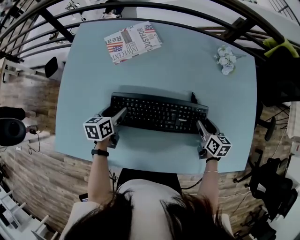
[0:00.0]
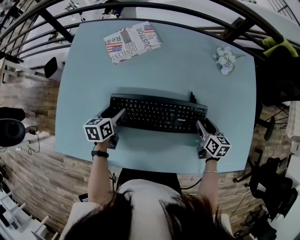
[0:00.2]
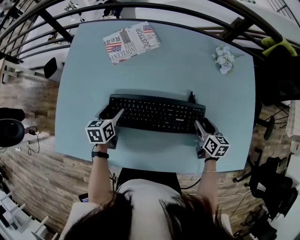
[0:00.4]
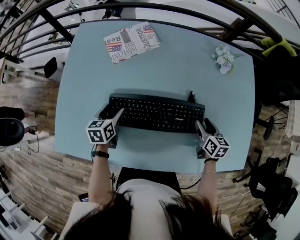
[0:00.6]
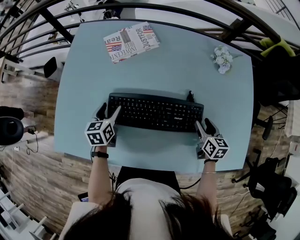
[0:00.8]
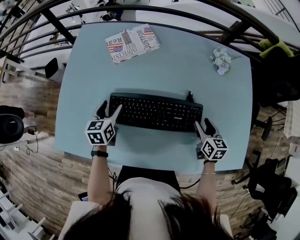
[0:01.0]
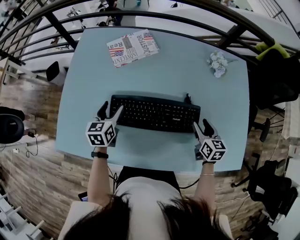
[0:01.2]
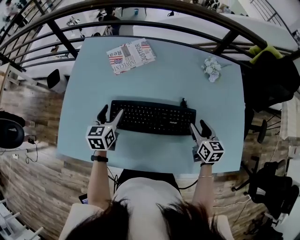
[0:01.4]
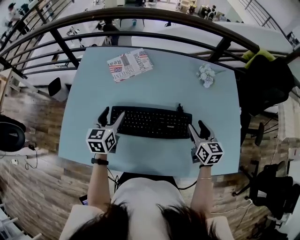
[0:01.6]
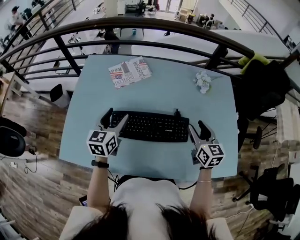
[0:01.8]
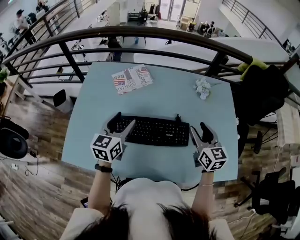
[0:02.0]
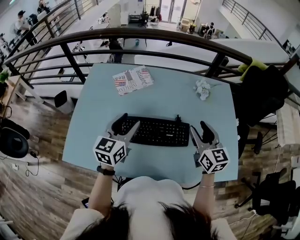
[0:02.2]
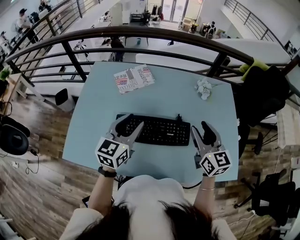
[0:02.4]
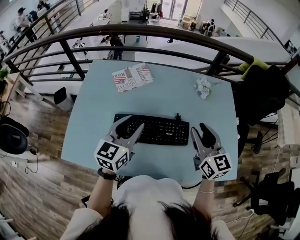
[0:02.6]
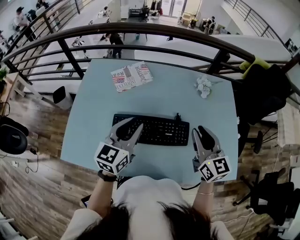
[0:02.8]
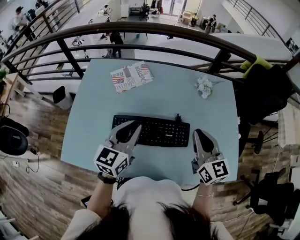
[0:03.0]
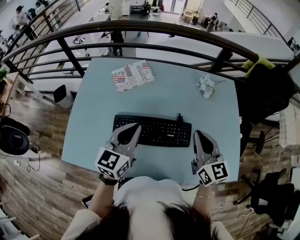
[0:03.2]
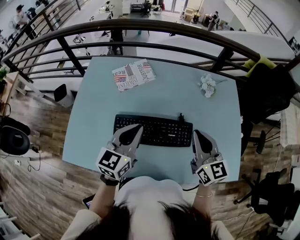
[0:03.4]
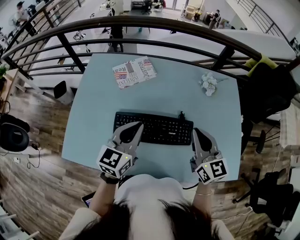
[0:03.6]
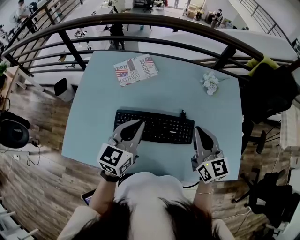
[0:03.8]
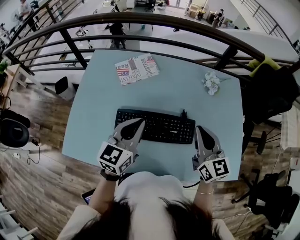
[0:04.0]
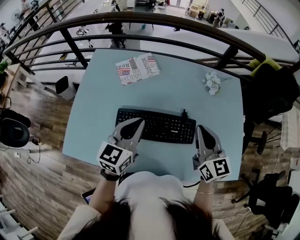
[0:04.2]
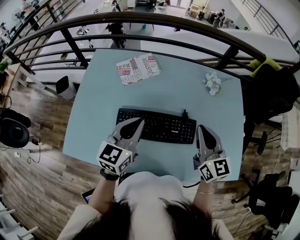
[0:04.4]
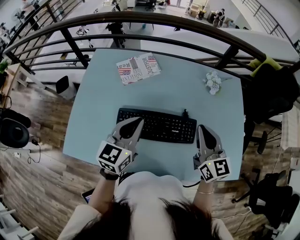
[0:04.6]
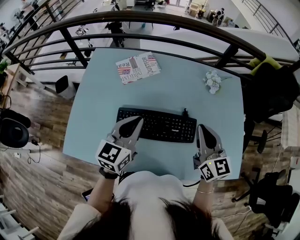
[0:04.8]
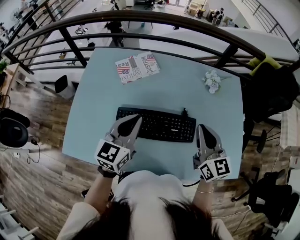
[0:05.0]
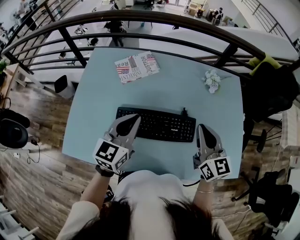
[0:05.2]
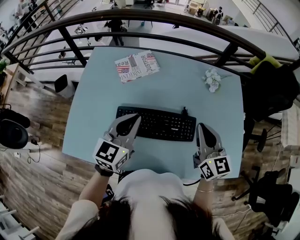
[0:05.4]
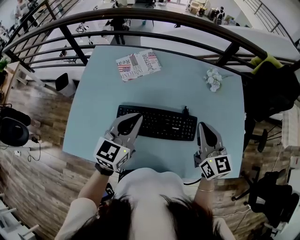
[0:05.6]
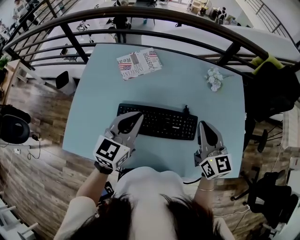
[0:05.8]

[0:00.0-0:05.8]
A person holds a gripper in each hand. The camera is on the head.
0:00.0 to 0:01.4: Both grippers travel together upward, about 10 cm. The left gripper rotates some 20 degrees.
0:01.4 to 0:02.8: The right gripper travels upward by roughly 20 cm, turns by some 30 degrees, and closes its fingers. Meanwhile the left gripper moves upward and to the right, approximately 20 cm, swivels approximately 30 degrees, and closes its fingers.
0:02.8 to 0:04.4: The right gripper closes its fingers.
0:04.4 to 0:05.8: There are only small adjustments of the grippers.

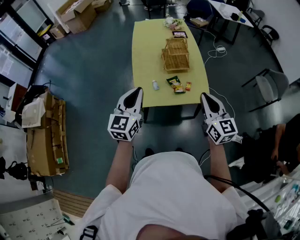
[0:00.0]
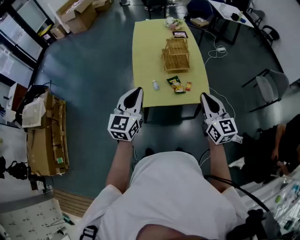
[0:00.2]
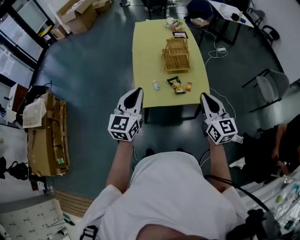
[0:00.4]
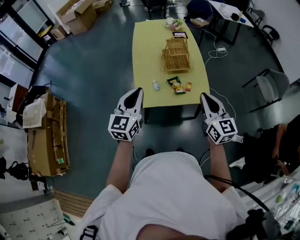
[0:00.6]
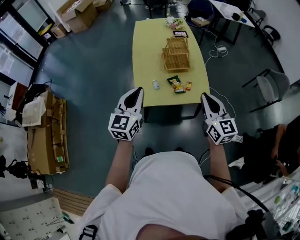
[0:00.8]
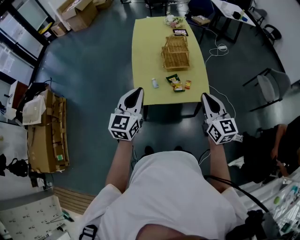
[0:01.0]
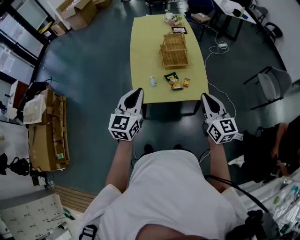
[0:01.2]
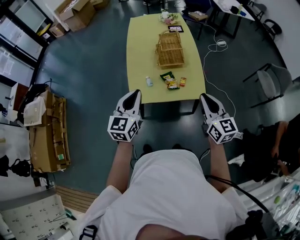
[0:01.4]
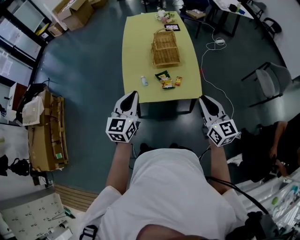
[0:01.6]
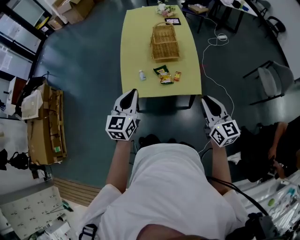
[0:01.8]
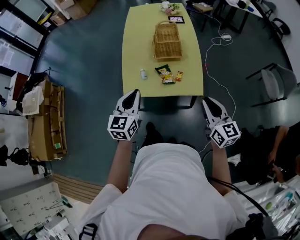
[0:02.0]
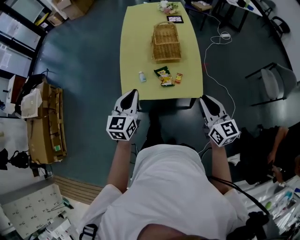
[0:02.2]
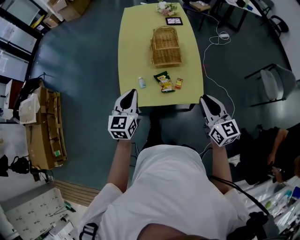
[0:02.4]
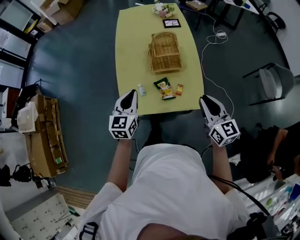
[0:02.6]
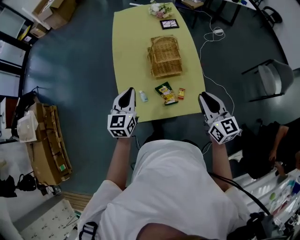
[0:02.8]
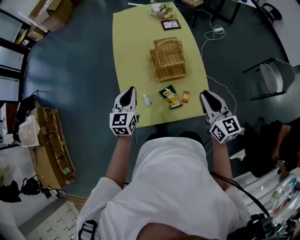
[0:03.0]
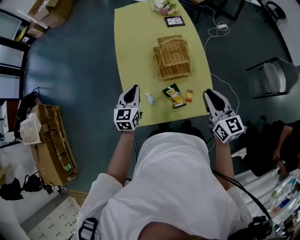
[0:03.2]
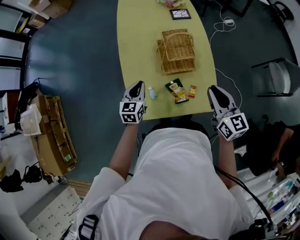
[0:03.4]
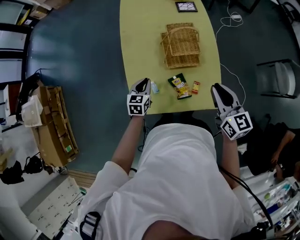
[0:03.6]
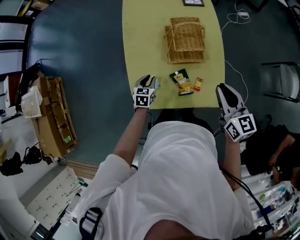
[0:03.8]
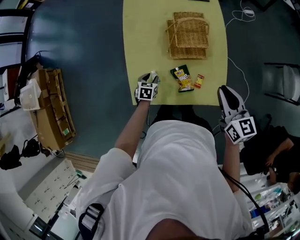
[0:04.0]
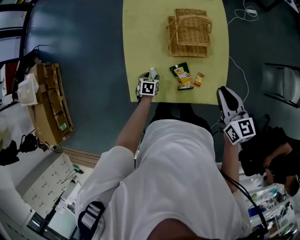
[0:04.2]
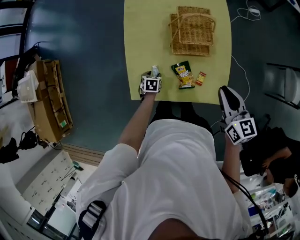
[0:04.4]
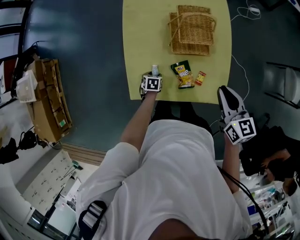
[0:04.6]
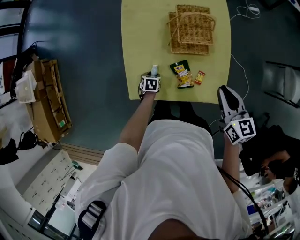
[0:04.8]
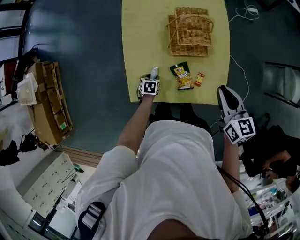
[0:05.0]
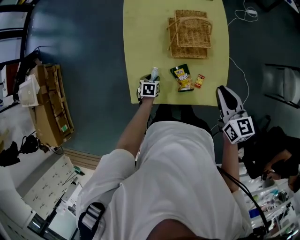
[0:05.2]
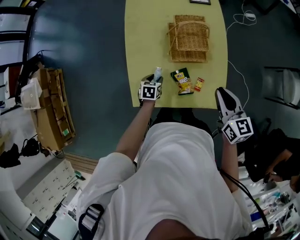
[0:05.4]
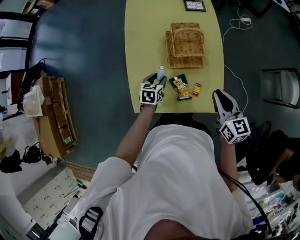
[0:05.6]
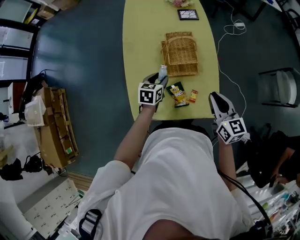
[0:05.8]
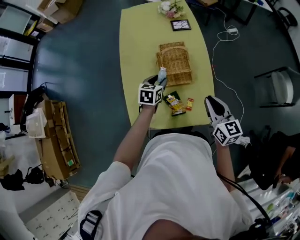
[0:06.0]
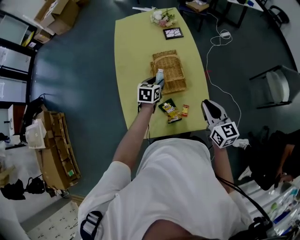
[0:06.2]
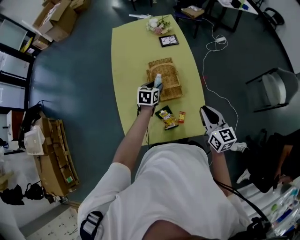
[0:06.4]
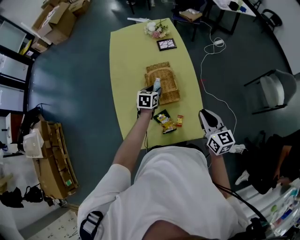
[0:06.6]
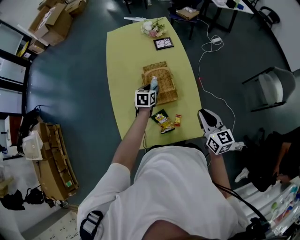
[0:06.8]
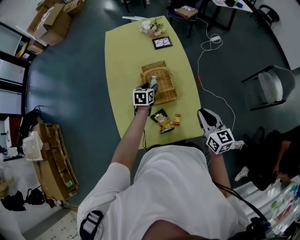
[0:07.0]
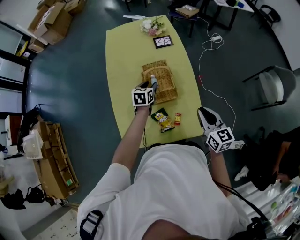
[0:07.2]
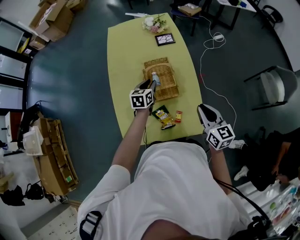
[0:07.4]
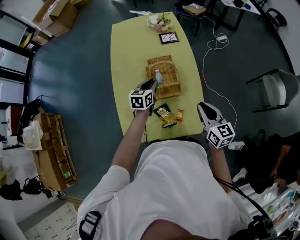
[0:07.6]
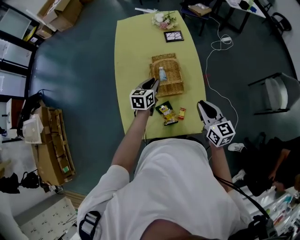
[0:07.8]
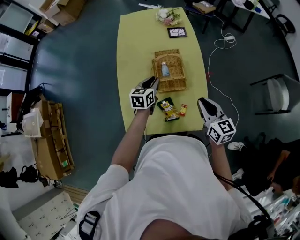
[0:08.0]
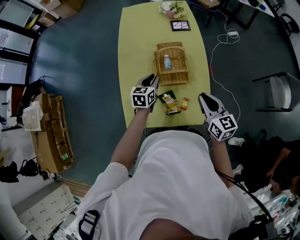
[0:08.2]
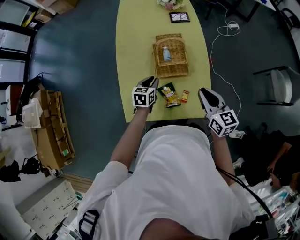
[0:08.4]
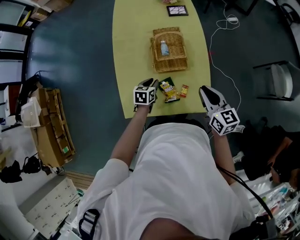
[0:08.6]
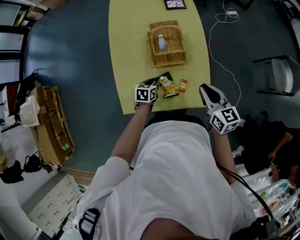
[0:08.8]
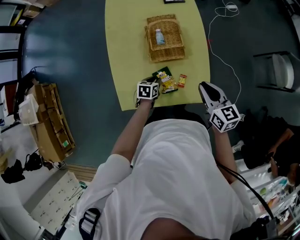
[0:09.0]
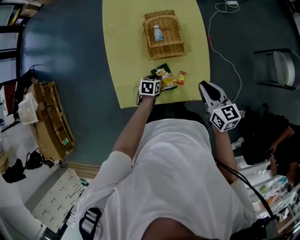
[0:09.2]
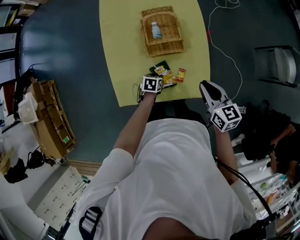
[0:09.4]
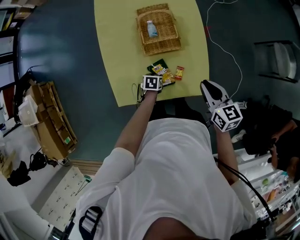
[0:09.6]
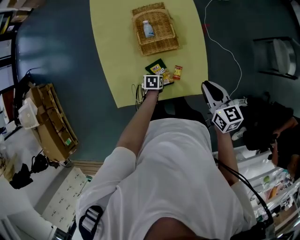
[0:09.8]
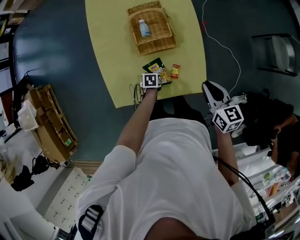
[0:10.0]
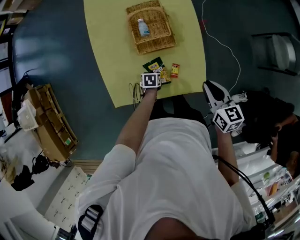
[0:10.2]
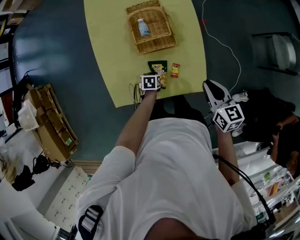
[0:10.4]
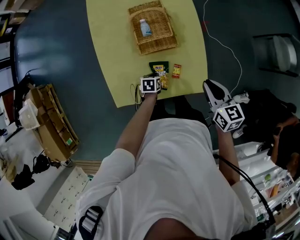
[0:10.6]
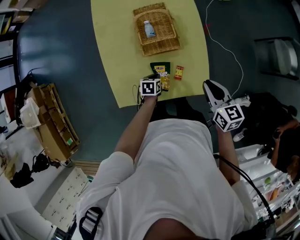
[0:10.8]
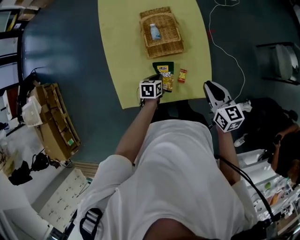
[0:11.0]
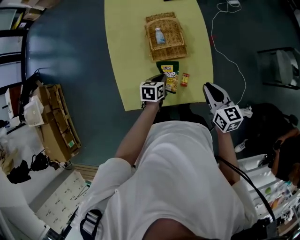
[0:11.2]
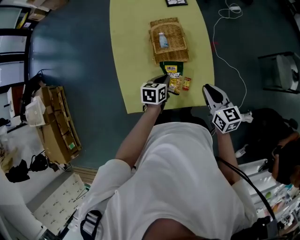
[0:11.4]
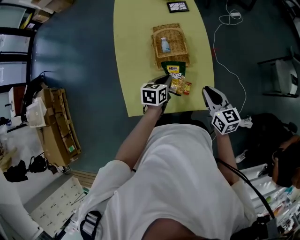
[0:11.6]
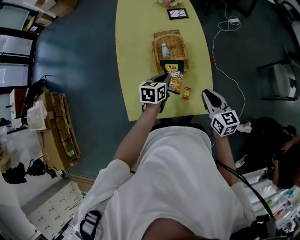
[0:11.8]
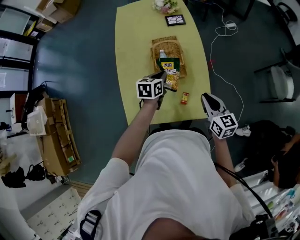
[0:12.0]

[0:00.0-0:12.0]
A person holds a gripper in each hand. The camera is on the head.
0:00.0 to 0:01.6: The two grippers go roughly 10 cm to the right.
0:01.6 to 0:03.0: The grippers both shift forward by about 30 cm.
0:03.0 to 0:04.4: The left gripper is displaced downward by some 40 cm, tilts its fingers some 50 degrees downward, and opens its fingers; the right gripper goes some 10 cm downward.
0:04.4 to 0:06.0: The left gripper is displaced upward and forward by about 30 cm, and changes its angle by roughly 30 degrees.
0:06.0 to 0:07.6: The left gripper moves forward, about 5 cm, and closes up.
0:07.6 to 0:09.0: The right gripper shifts approximately 5 cm downward. The left gripper is displaced downward and backward by some 25 cm, and swivels roughly 30 degrees.
0:09.0 to 0:10.4: The right gripper moves to the right and downward, some 10 cm. Meanwhile the left gripper is displaced downward by about 10 cm.
0:10.4 to 0:12.0: The left gripper shifts some 30 cm upward and forward, and tips its fingers upward by some 30 degrees. The right gripper shifts about 5 cm upward.

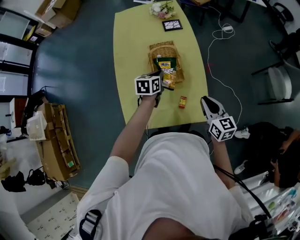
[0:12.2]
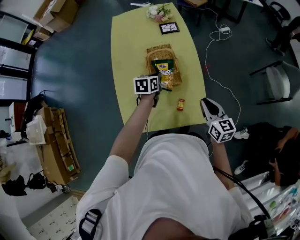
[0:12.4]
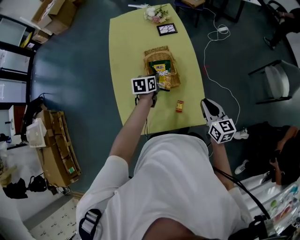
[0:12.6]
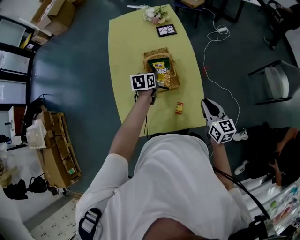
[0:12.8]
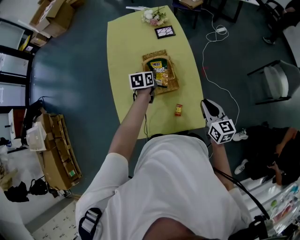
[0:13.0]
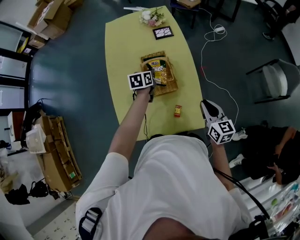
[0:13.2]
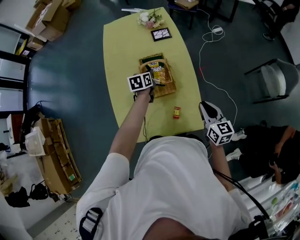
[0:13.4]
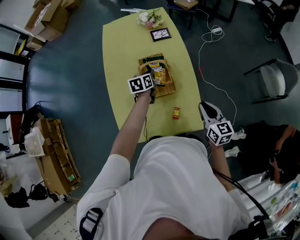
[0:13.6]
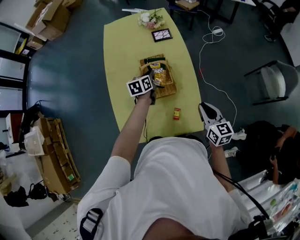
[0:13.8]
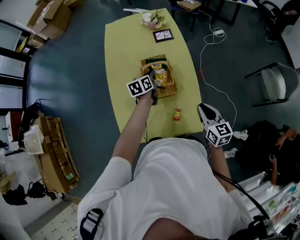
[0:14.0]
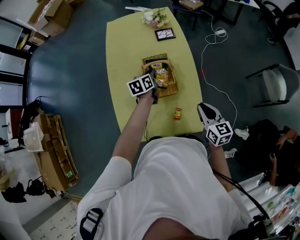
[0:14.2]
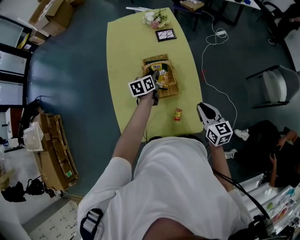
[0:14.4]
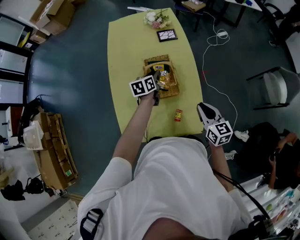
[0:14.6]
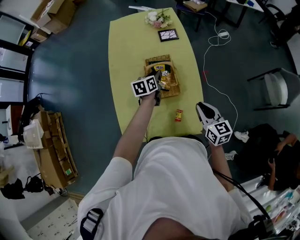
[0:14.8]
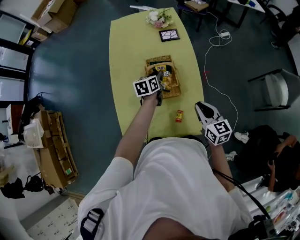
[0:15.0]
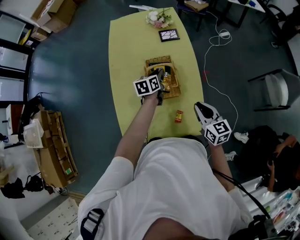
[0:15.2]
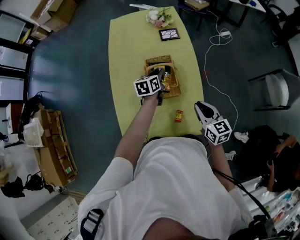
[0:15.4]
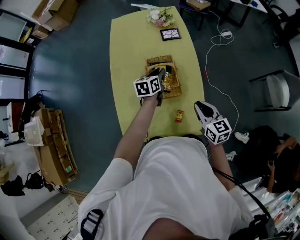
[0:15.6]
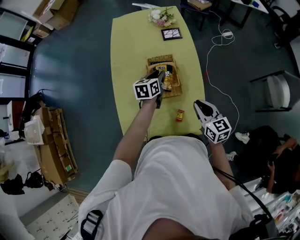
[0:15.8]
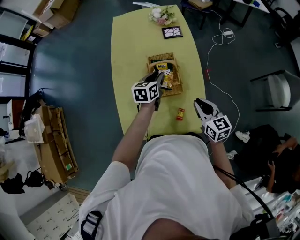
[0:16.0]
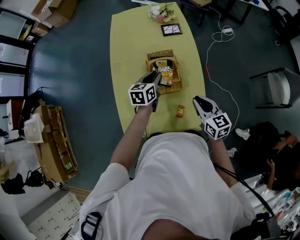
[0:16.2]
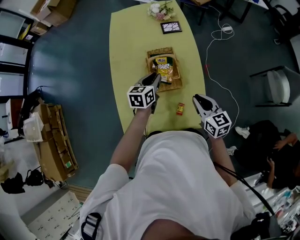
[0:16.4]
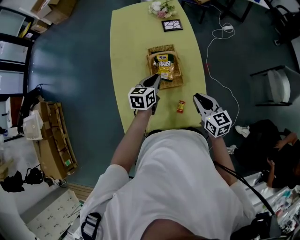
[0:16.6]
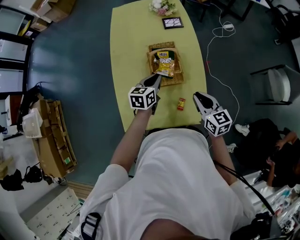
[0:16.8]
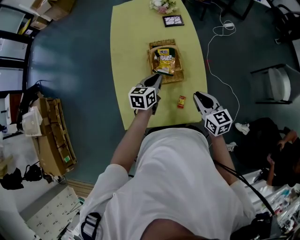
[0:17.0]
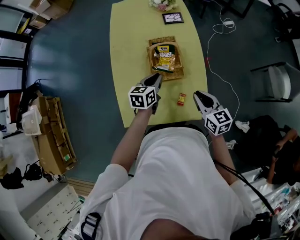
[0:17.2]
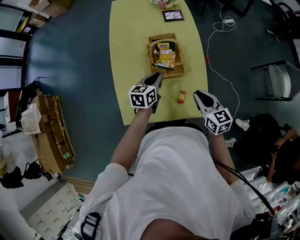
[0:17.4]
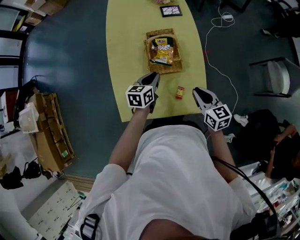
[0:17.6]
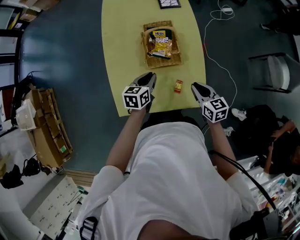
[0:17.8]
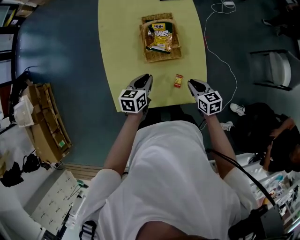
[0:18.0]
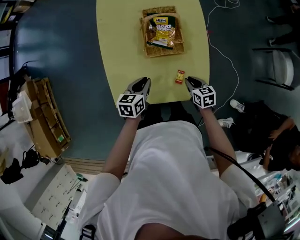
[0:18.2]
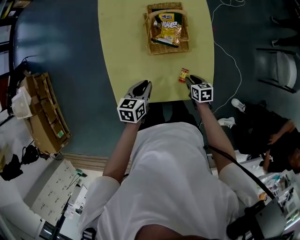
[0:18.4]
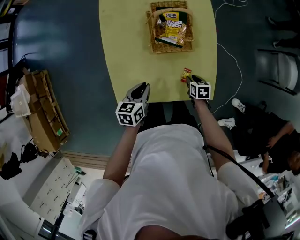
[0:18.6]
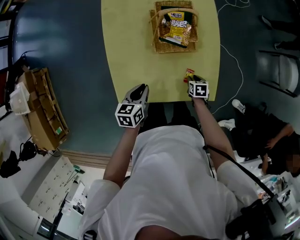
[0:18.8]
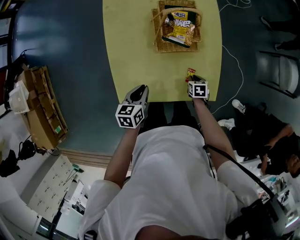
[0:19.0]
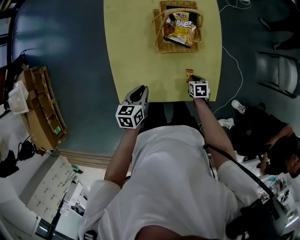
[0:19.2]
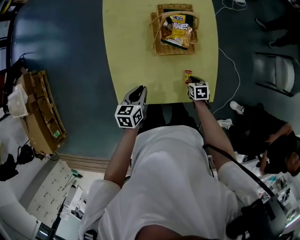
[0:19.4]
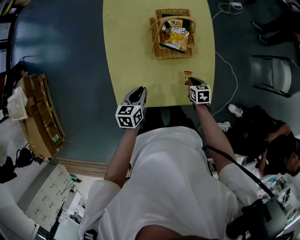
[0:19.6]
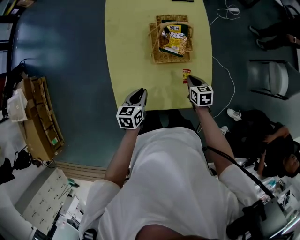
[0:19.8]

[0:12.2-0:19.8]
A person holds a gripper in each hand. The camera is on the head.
0:12.2 to 0:13.8: The left gripper shifts approximately 10 cm forward.
0:13.8 to 0:15.2: The right gripper ends up roughly 5 cm from where it was.
0:15.2 to 0:16.8: The left gripper moves backward, roughly 10 cm.
0:16.8 to 0:18.2: The left gripper is displaced backward and downward by about 15 cm; the right gripper heads downward, covering some 20 cm, and turns by roughly 30 degrees.
0:18.2 to 0:19.8: The left gripper is displaced to the left by approximately 5 cm; the right gripper heads forward, covering about 5 cm, and goes downward and returns, some 15 cm each way.
